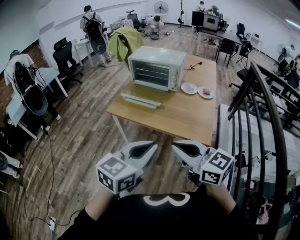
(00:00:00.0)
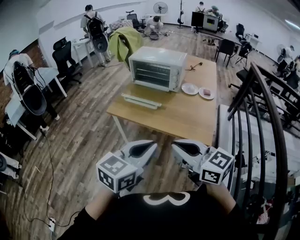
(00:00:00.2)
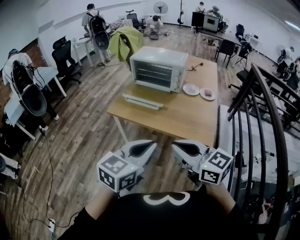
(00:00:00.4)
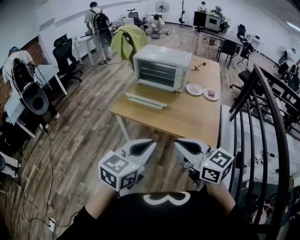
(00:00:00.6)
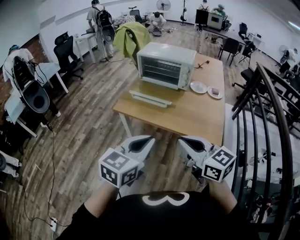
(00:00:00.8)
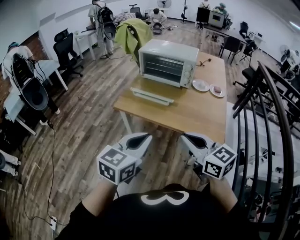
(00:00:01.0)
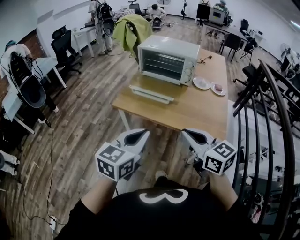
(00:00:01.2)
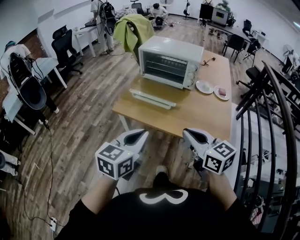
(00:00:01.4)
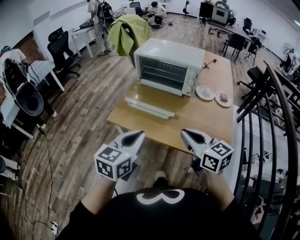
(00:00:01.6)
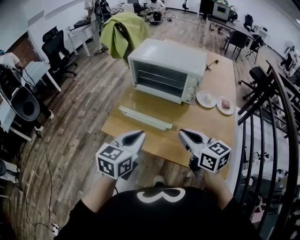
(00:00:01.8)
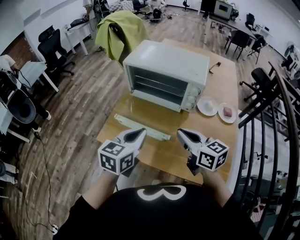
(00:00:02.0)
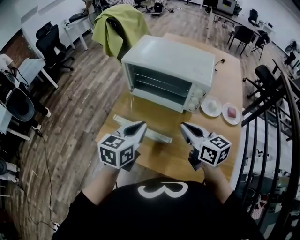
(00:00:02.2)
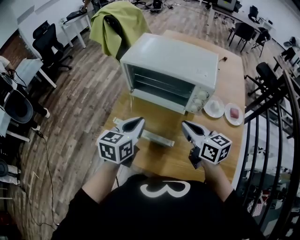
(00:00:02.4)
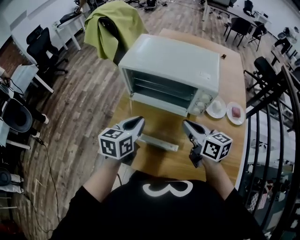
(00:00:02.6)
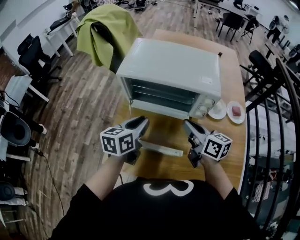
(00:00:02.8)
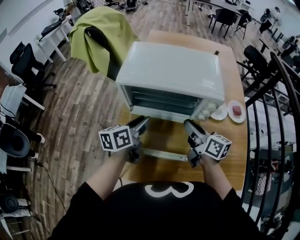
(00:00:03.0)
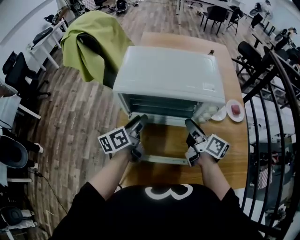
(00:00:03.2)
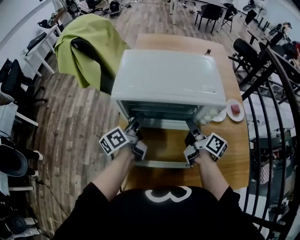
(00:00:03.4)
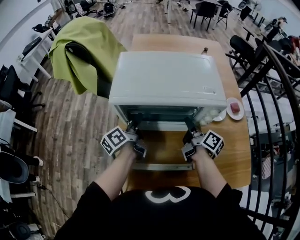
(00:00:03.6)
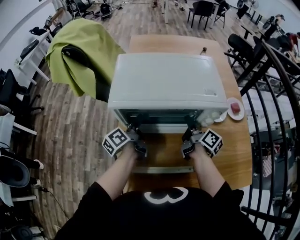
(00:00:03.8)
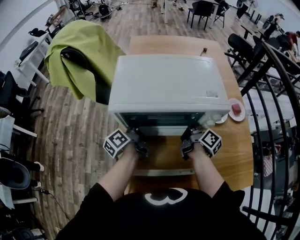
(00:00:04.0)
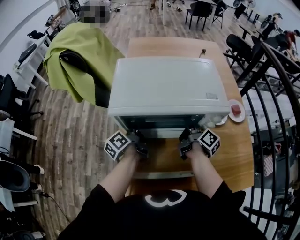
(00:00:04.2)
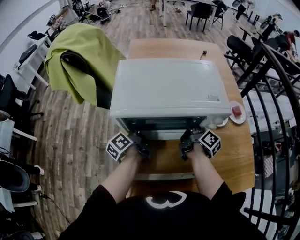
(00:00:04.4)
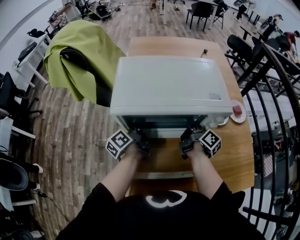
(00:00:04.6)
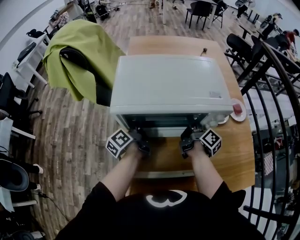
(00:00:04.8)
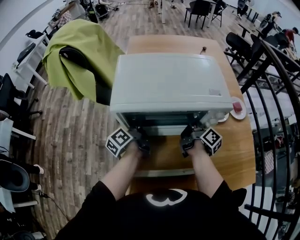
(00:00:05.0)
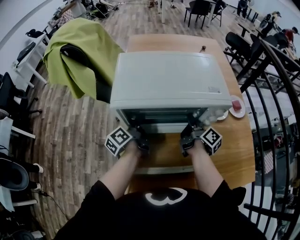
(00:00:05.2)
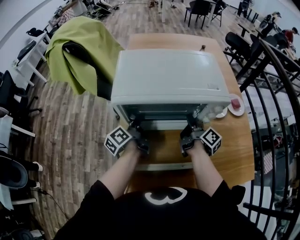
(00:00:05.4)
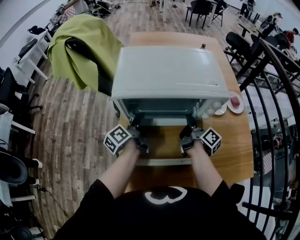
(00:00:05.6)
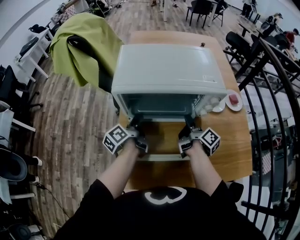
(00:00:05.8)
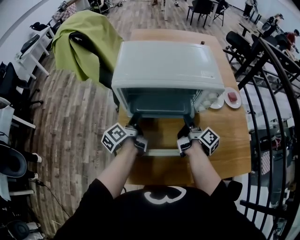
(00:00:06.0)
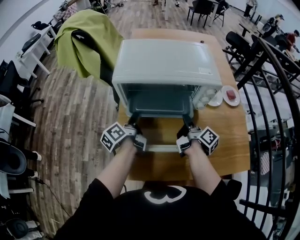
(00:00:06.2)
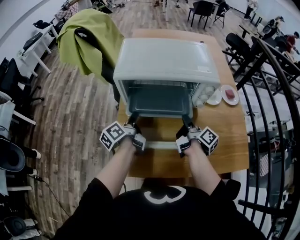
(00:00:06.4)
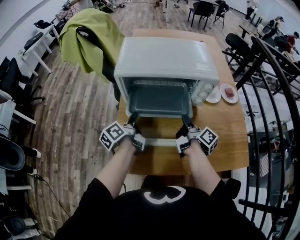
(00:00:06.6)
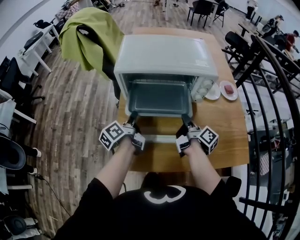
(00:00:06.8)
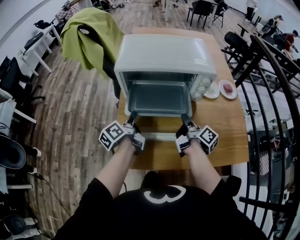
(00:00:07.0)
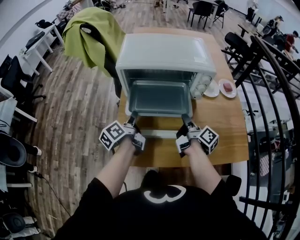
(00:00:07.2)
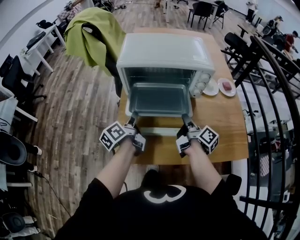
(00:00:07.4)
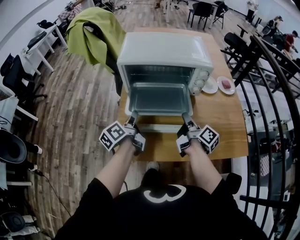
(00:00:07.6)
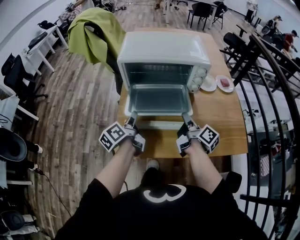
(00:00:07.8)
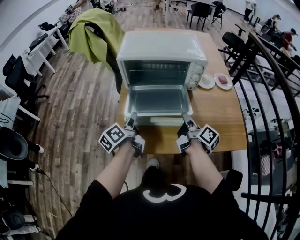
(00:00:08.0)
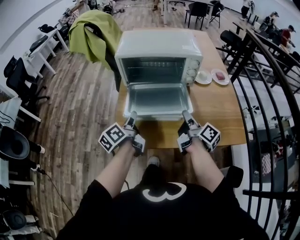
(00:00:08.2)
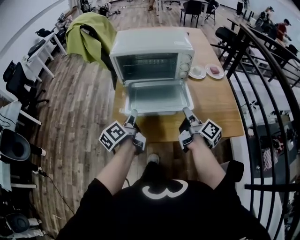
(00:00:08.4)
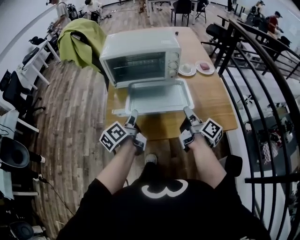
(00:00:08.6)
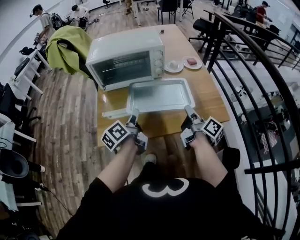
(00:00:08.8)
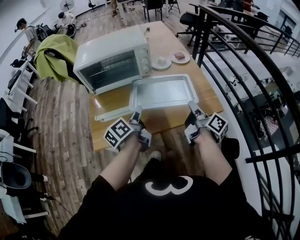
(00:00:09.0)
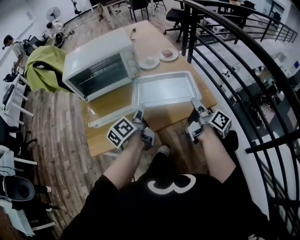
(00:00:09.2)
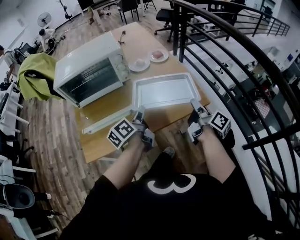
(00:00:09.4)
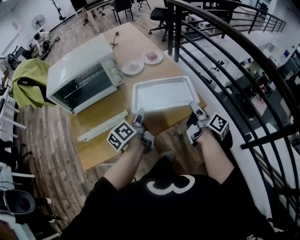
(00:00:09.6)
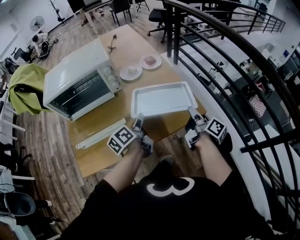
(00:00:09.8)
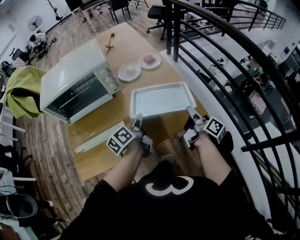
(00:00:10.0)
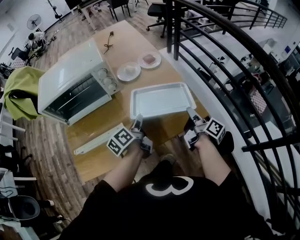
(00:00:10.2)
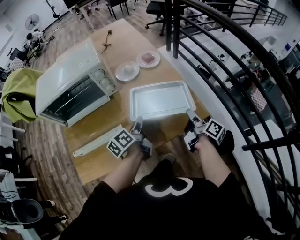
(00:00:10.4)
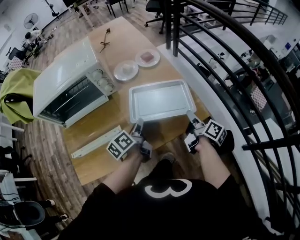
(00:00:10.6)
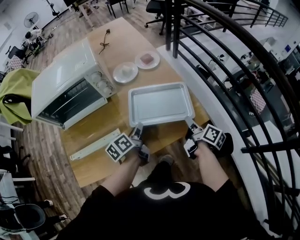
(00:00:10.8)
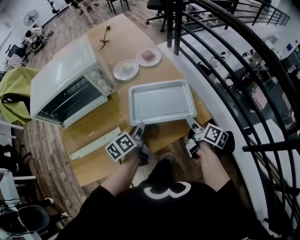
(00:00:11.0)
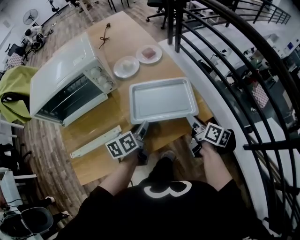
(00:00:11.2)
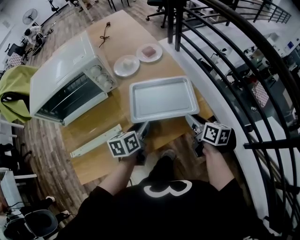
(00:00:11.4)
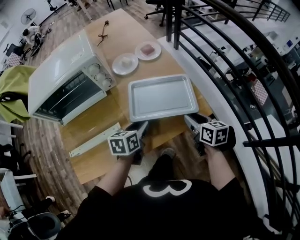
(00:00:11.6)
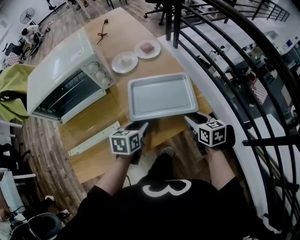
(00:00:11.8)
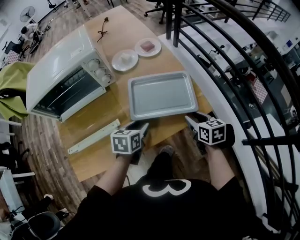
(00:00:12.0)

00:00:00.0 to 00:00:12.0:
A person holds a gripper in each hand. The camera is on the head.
00:00:00.0 to 00:00:01.6: The right gripper is displaced forward by some 25 cm. Meanwhile the left gripper shifts roughly 30 cm forward and to the left.
00:00:01.6 to 00:00:03.0: Both grippers move forward, approximately 40 cm. The left gripper turns by about 30 degrees, and opens its fingers; the right gripper turns by about 40 degrees.
00:00:03.0 to 00:00:04.4: The left gripper moves forward, downward and to the left, roughly 20 cm, and rotates approximately 30 degrees, while the right gripper moves forward and downward, approximately 15 cm, and rotates approximately 50 degrees.
00:00:04.4 to 00:00:06.0: Both grippers travel together backward, about 10 cm.
00:00:06.0 to 00:00:07.6: The two grippers go approximately 15 cm backward.
00:00:07.6 to 00:00:09.0: Both grippers travel together to the right and backward, some 25 cm.
00:00:09.0 to 00:00:10.4: The right gripper shifts about 20 cm to the right, downward and forward. Meanwhile the left gripper moves to the right, forward and downward, about 20 cm.
00:00:10.4 to 00:00:12.0: The right gripper is displaced downward by roughly 5 cm, rolls counterclockwise, seen from behind, by approximately 50 degrees, and opens up; the left gripper moves approximately 5 cm, twists some 40 degrees clockwise, seen from behind, and opens its fingers.

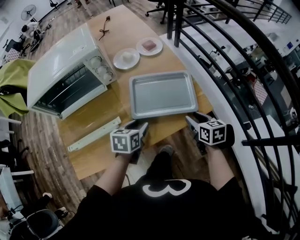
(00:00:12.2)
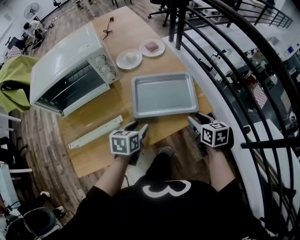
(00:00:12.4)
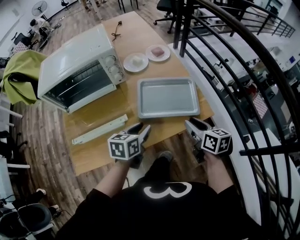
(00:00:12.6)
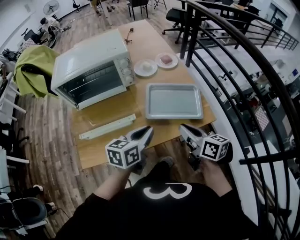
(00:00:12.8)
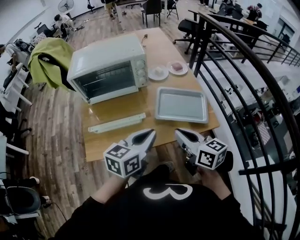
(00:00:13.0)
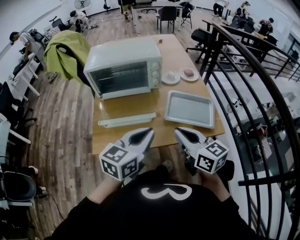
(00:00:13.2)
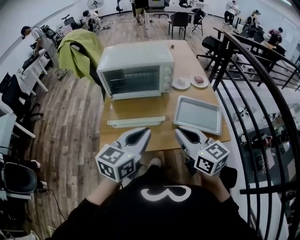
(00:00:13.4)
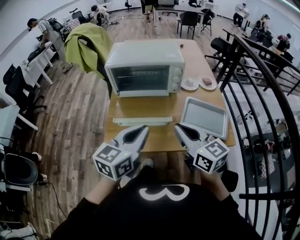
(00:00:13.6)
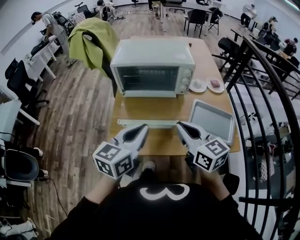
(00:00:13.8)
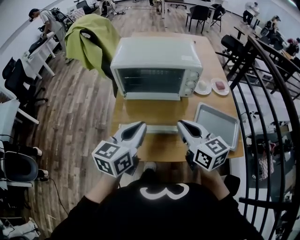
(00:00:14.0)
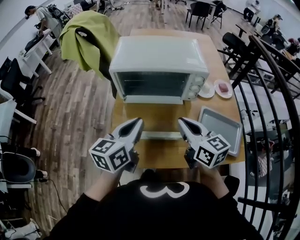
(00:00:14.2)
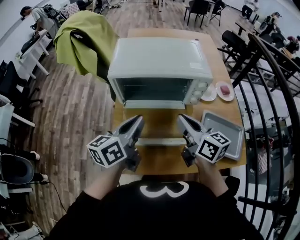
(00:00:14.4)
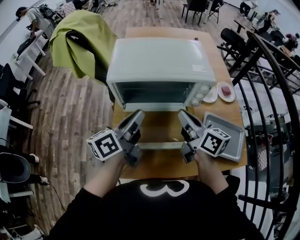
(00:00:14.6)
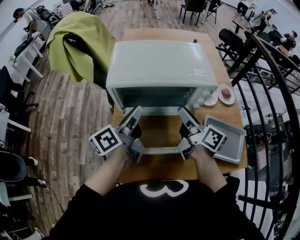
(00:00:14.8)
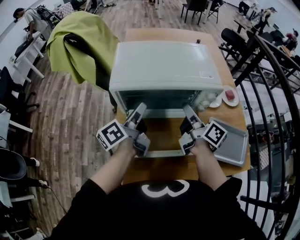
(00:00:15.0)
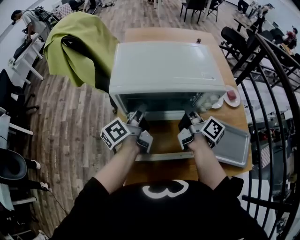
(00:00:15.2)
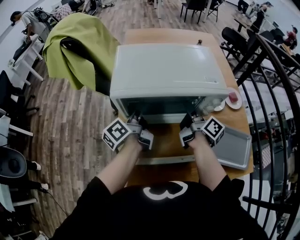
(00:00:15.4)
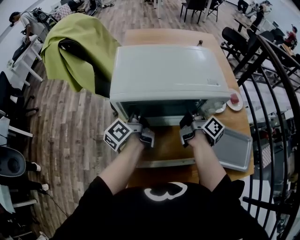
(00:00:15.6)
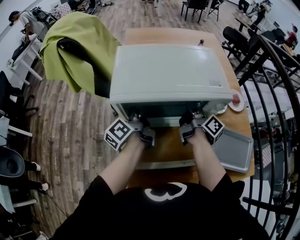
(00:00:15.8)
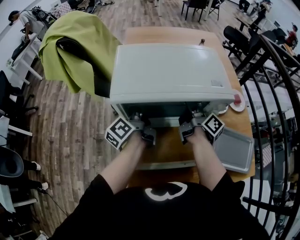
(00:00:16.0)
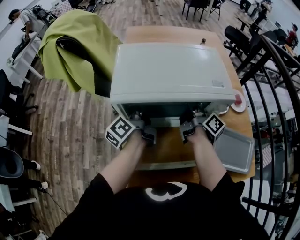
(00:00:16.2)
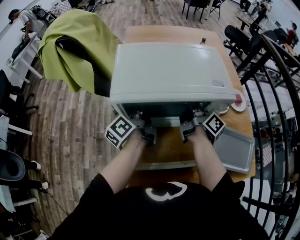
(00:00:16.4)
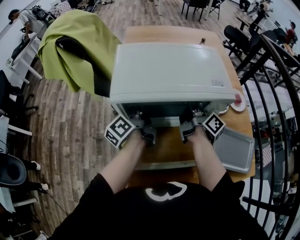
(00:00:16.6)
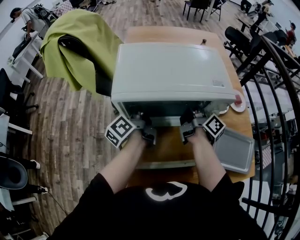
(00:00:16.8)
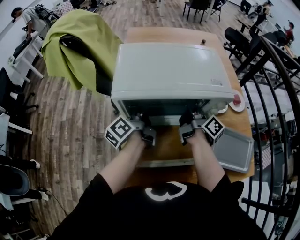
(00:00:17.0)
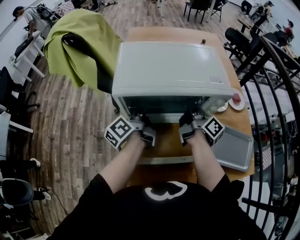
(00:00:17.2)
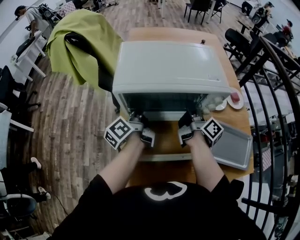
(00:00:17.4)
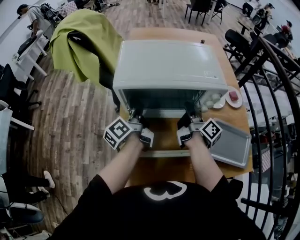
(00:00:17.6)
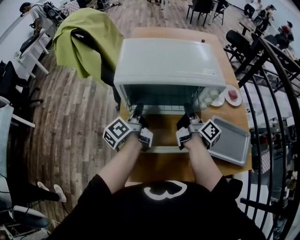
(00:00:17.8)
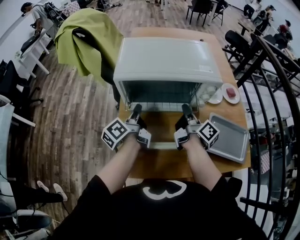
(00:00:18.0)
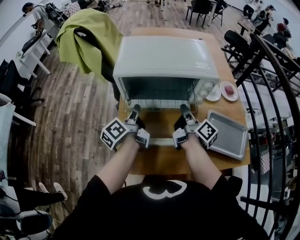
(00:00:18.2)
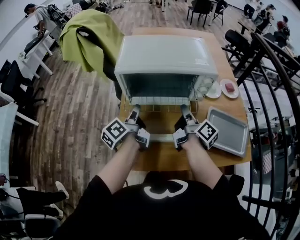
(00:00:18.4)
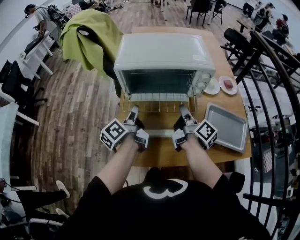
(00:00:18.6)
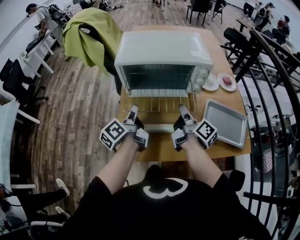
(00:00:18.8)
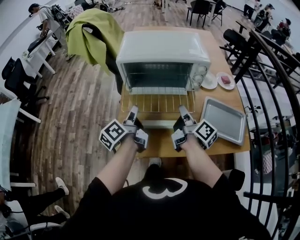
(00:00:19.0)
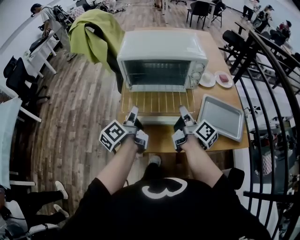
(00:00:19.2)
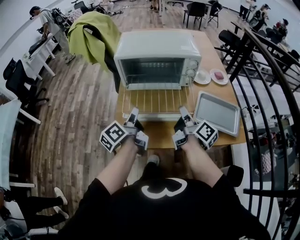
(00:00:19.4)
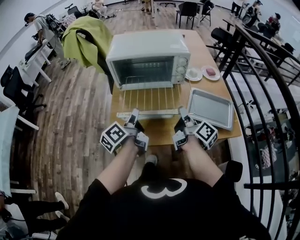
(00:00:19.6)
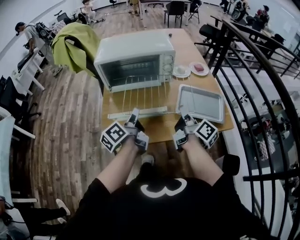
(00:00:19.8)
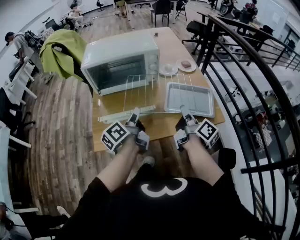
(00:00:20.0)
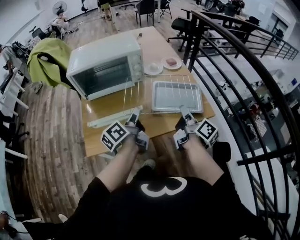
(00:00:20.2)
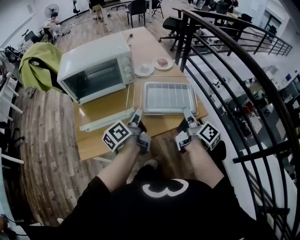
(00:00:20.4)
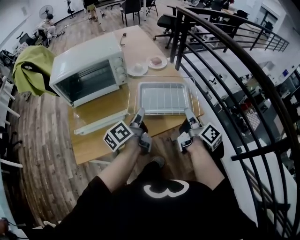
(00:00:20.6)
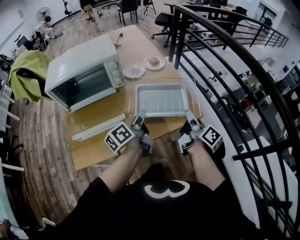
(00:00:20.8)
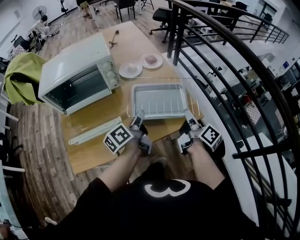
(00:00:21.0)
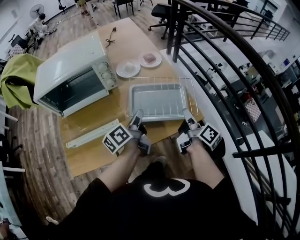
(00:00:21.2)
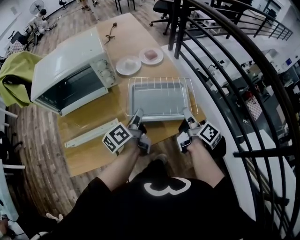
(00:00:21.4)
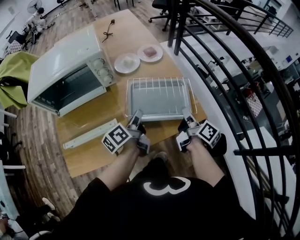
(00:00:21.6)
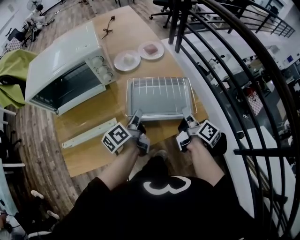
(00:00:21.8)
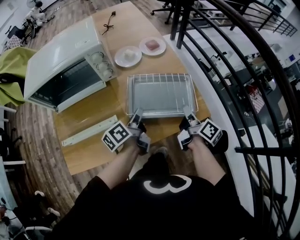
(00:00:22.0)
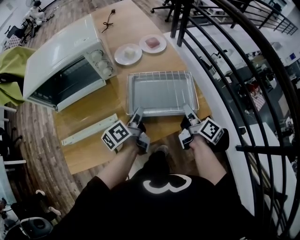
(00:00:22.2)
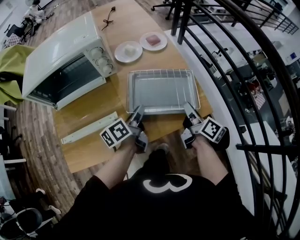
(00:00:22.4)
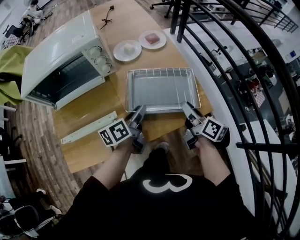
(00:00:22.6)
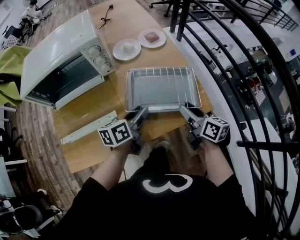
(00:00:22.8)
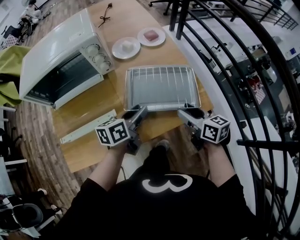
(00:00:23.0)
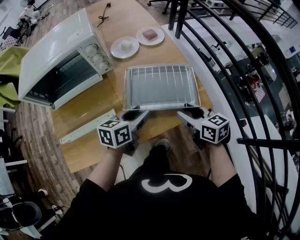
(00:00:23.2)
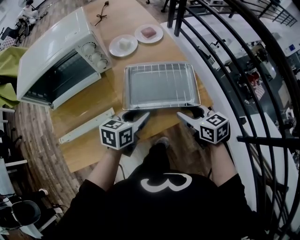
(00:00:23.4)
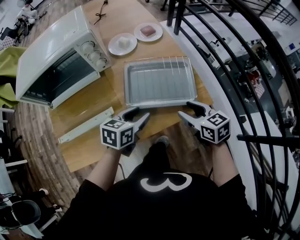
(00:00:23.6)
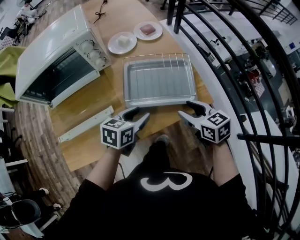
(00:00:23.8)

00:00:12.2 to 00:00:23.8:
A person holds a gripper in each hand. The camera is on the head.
00:00:12.2 to 00:00:13.6: The left gripper moves upward, some 30 cm, points its fingers approximately 30 degrees further upward, and closes up; the right gripper ends up some 40 cm from where it was, tilts its fingers approximately 30 degrees upward, and closes its fingers.
00:00:13.6 to 00:00:15.0: The grippers both shift forward by about 35 cm. The left gripper twists roughly 50 degrees counterclockwise, seen from behind, and opens its fingers. Meanwhile the right gripper rotates around the line of its fingers by about 50 degrees, clockwise from behind, and opens its fingers.
00:00:15.0 to 00:00:16.6: Both grippers move forward and downward, about 10 cm. The left gripper closes, while the right gripper closes up.
00:00:16.6 to 00:00:18.0: Both grippers move backward, some 10 cm.
00:00:18.0 to 00:00:19.4: The two grippers go about 20 cm backward.
00:00:19.4 to 00:00:21.0: The left gripper ends up roughly 35 cm from where it was, and changes its angle by roughly 30 degrees. The right gripper changes place by some 35 cm, and changes its angle by approximately 30 degrees.
00:00:21.0 to 00:00:22.4: The right gripper goes about 10 cm downward and forward; the left gripper shifts some 10 cm downward.
00:00:22.4 to 00:00:23.8: The right gripper is displaced backward by about 5 cm, twists some 50 degrees counterclockwise, seen from behind, and opens its fingers, while the left gripper ends up some 5 cm from where it was, twists approximately 40 degrees clockwise, seen from behind, and opens up.
